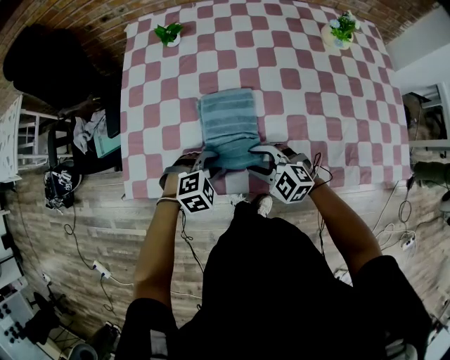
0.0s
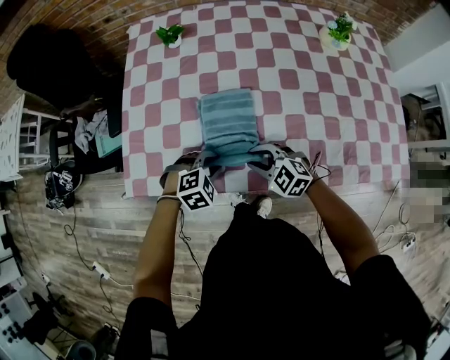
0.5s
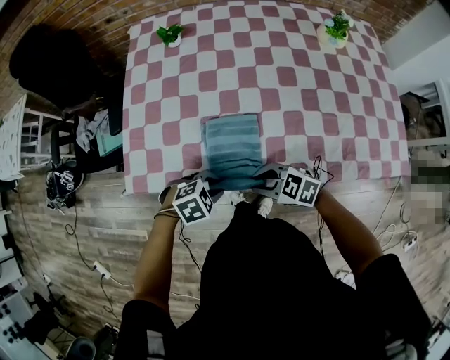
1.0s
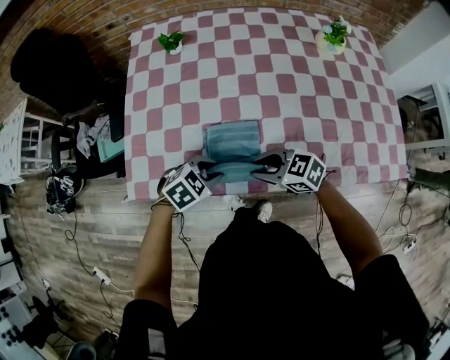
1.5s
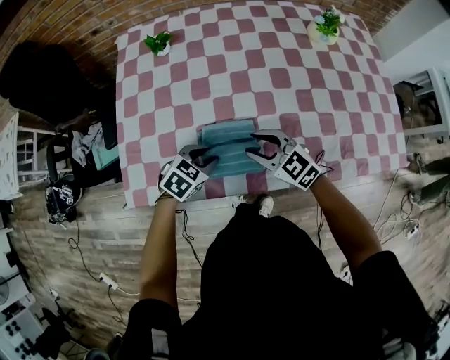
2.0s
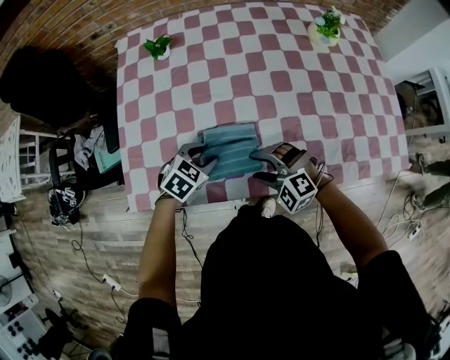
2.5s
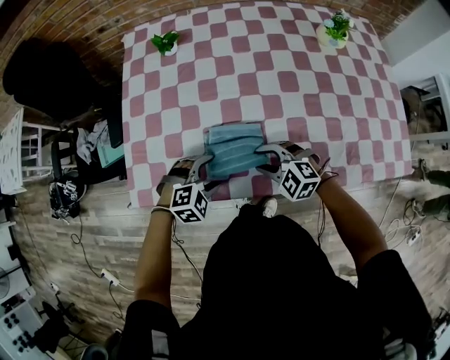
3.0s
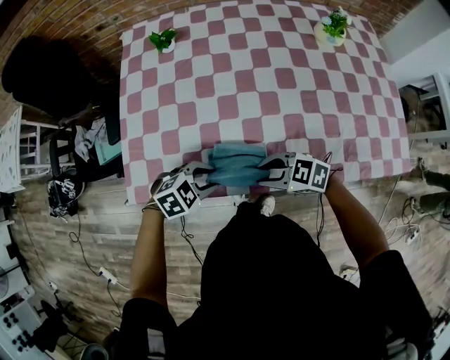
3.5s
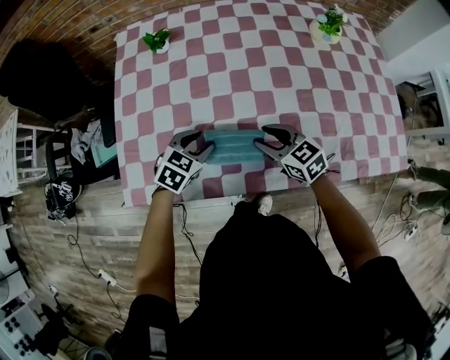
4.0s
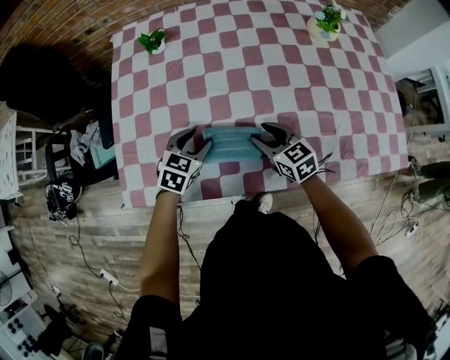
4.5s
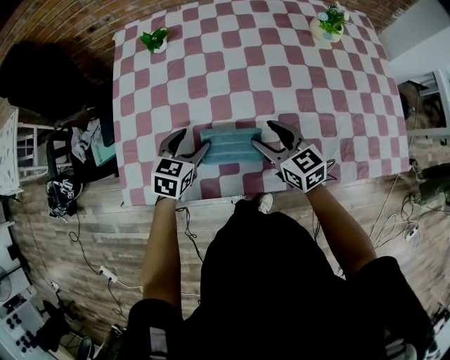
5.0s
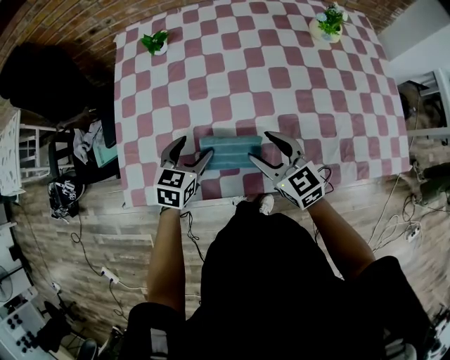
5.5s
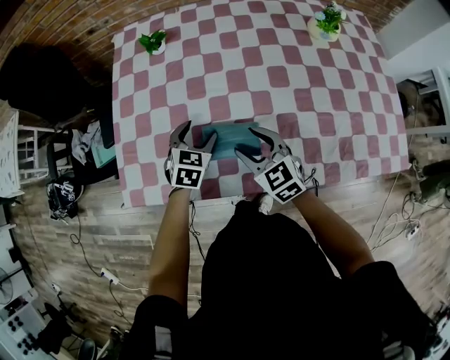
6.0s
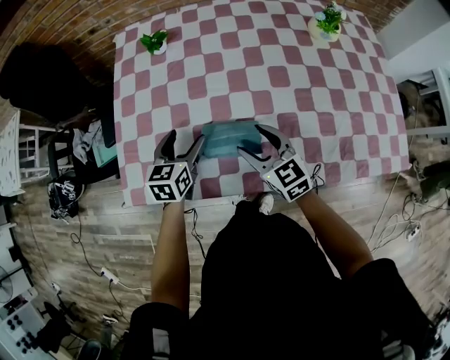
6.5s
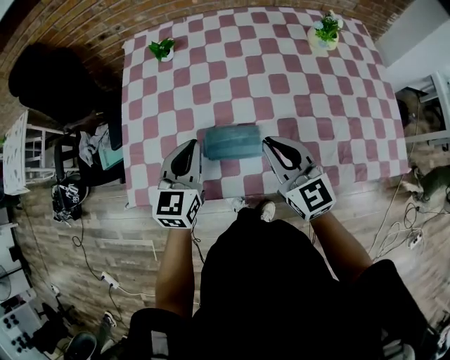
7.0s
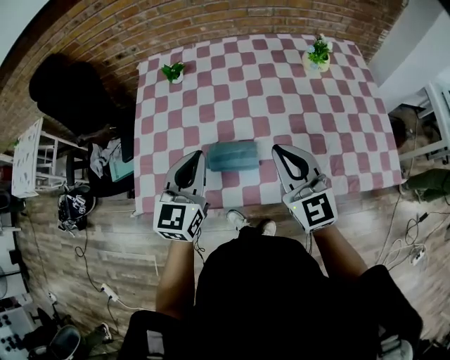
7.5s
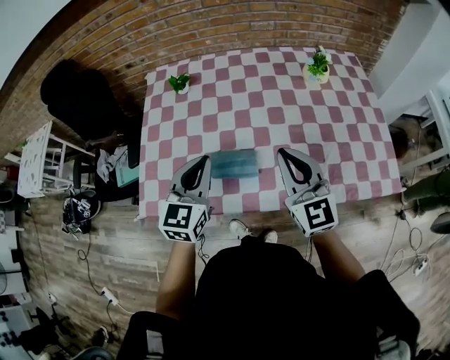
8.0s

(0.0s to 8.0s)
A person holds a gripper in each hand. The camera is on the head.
0.0s - 2.0s: The right gripper travels upward by approximately 5 cm, and swivels about 20 degrees. Meanwhile the left gripper swivels some 30 degrees.
4.0s - 6.0s: The left gripper swivels roughly 20 degrees.
6.0s - 8.0s: The right gripper moves upward and to the right, some 25 cm, swivels about 30 degrees, and closes. Meanwhile the left gripper shifts some 25 cm upward and backward, tilts its fingers roughly 30 degrees upward, and closes up.

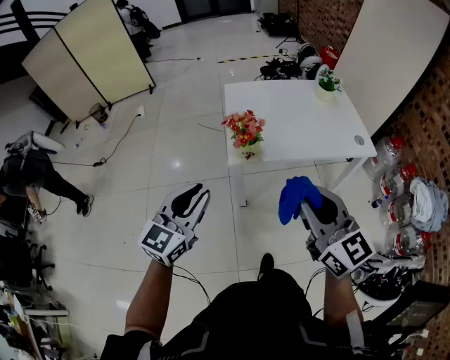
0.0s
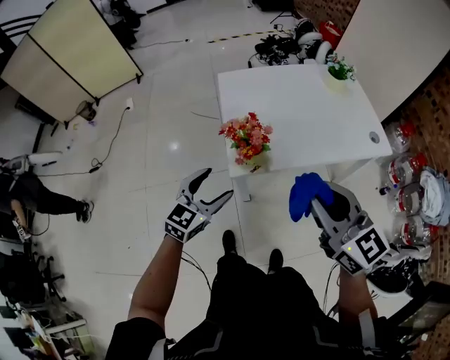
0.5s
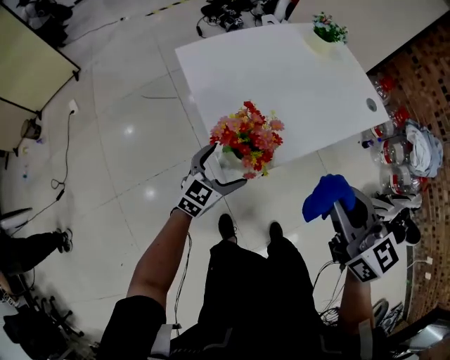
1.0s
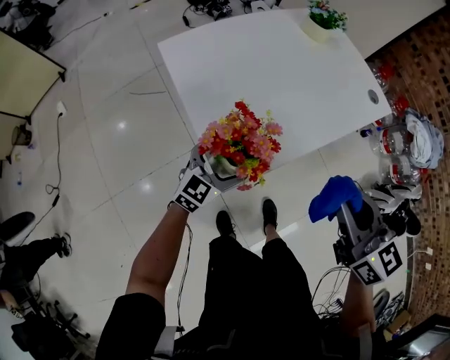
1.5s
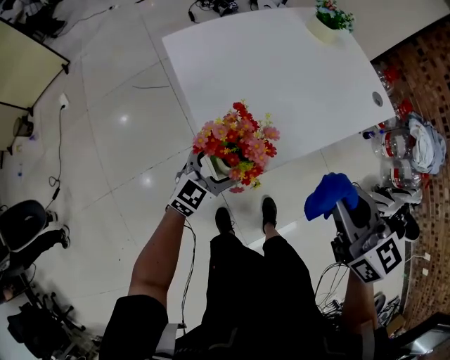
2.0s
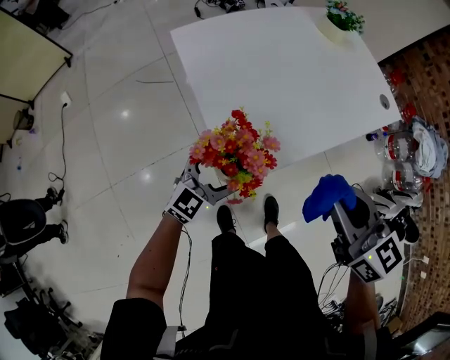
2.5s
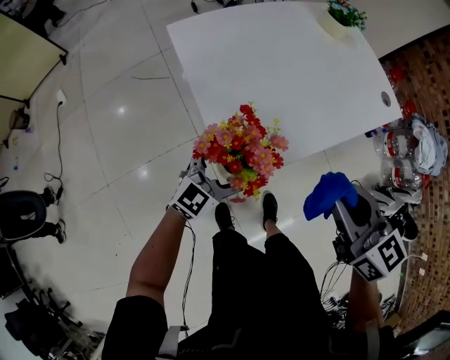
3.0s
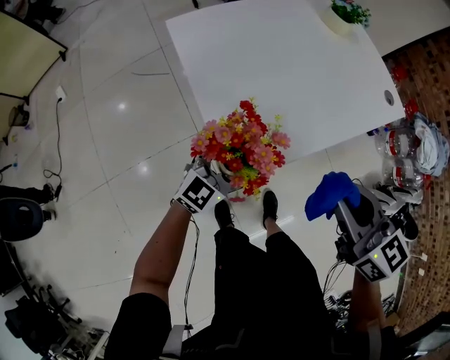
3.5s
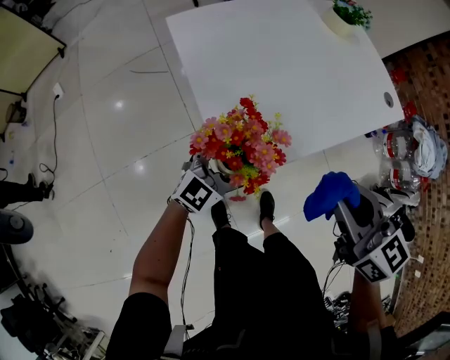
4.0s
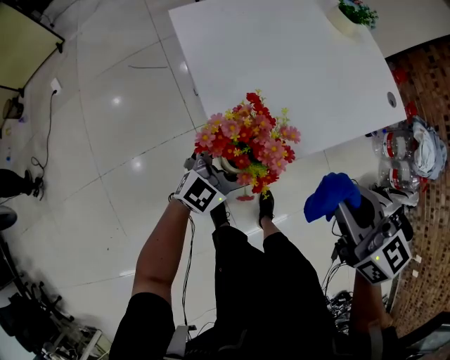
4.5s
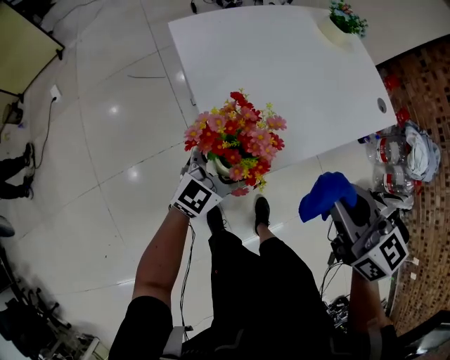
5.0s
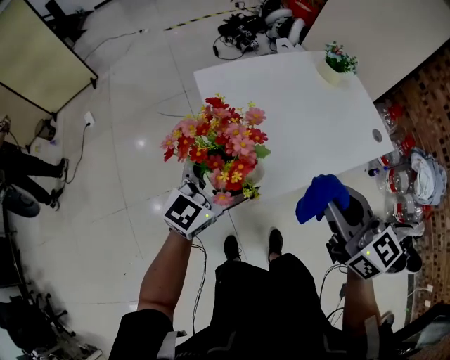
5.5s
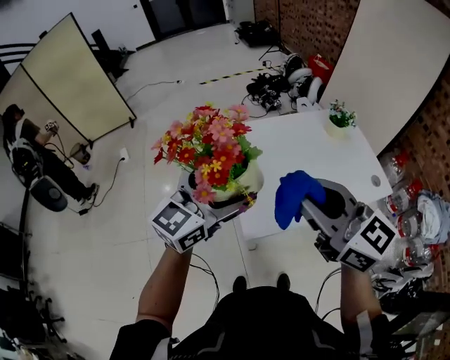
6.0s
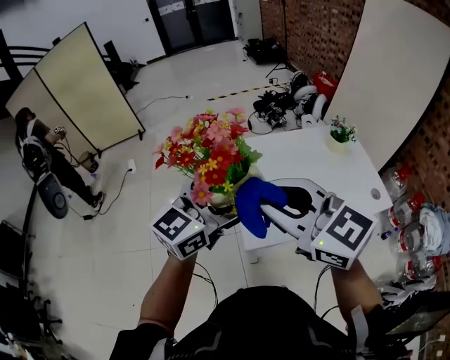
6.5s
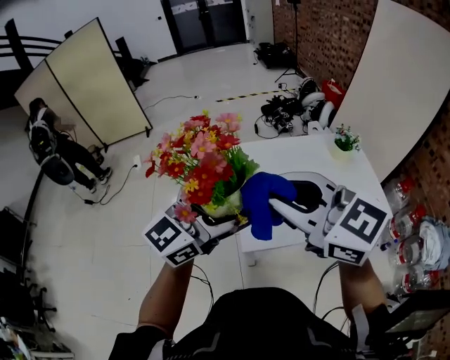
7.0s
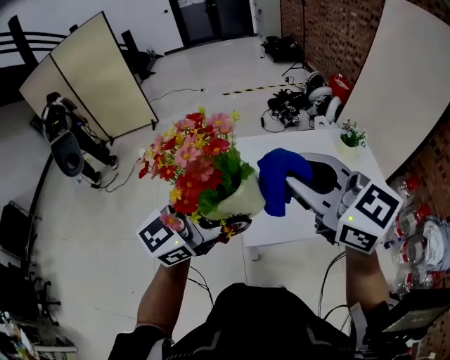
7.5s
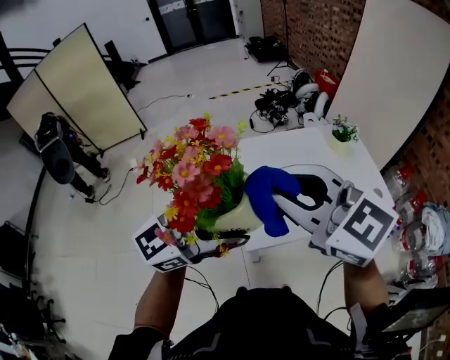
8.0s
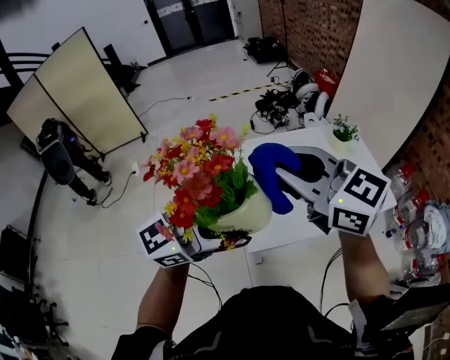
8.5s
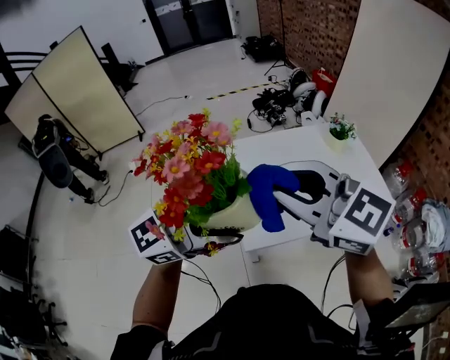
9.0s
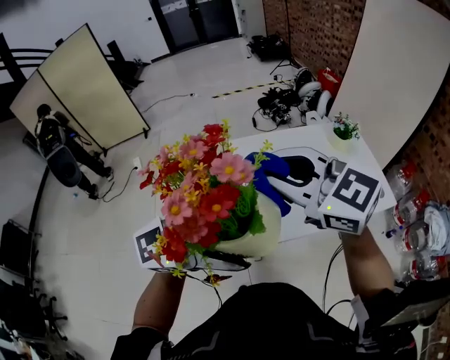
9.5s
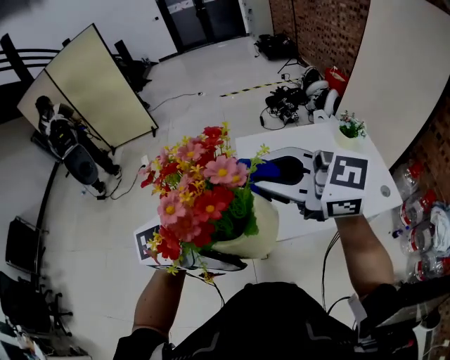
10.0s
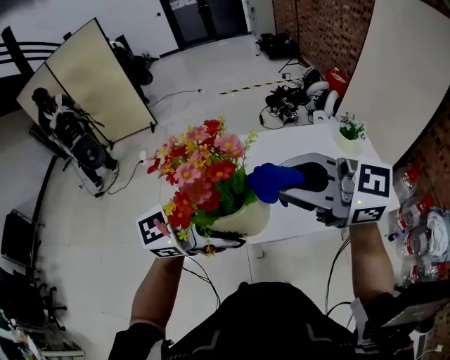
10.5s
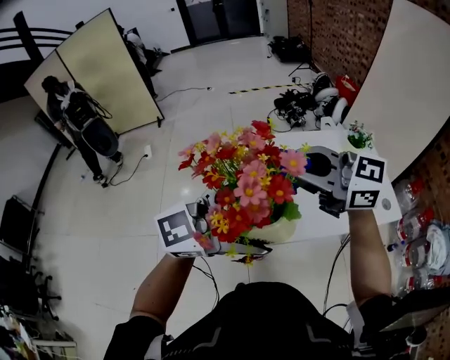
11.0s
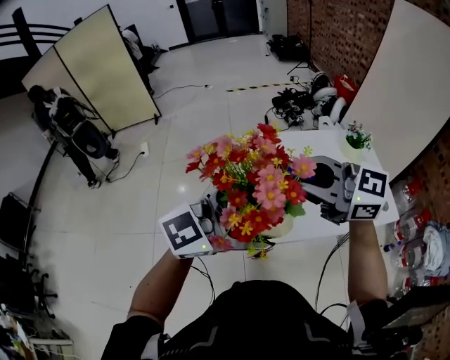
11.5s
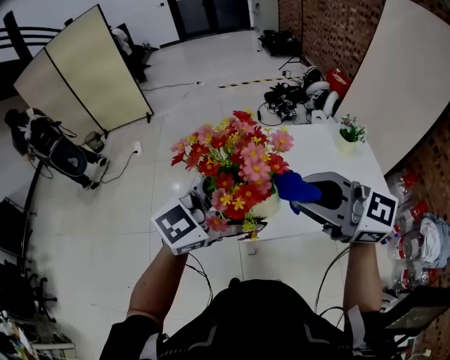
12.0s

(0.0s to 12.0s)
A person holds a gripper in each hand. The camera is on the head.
0.0s - 2.0s: The left gripper ends up roughly 50 cm from where it was, swivels approximately 40 degrees, and opens up; the right gripper shifts by approximately 35 cm, and swivels roughly 30 degrees.
2.0s - 4.0s: The grippers make only small movements.
4.0s - 6.0s: Both grippers move upward, some 35 cm. The left gripper swivels some 20 degrees. The right gripper turns by about 30 degrees.
6.0s - 8.0s: The right gripper goes some 10 cm upward and to the left; the left gripper is displaced backward and upward by roughly 10 cm.
8.0s - 10.0s: The left gripper moves approximately 5 cm. Meanwhile the right gripper changes its angle by about 20 degrees.
10.0s - 12.0s: The left gripper changes place by about 10 cm, and turns by roughly 20 degrees; the right gripper moves roughly 10 cm.

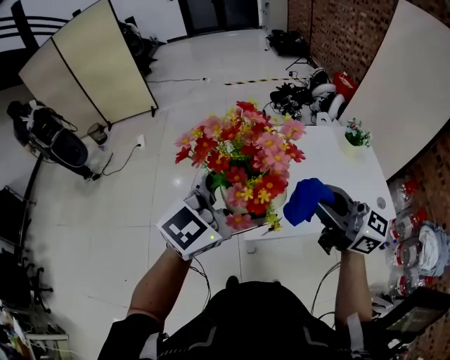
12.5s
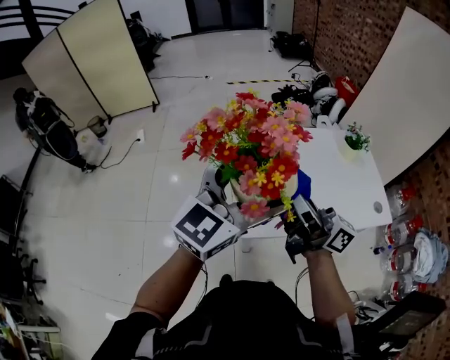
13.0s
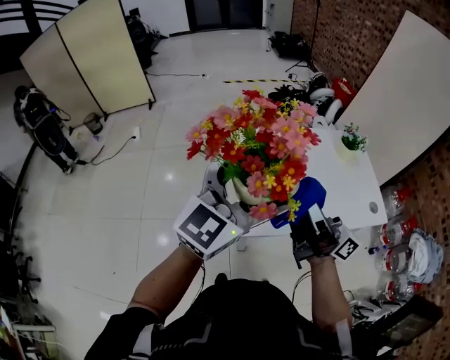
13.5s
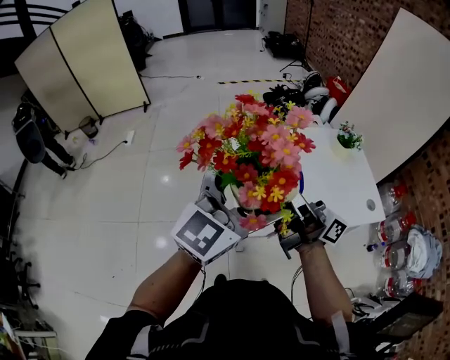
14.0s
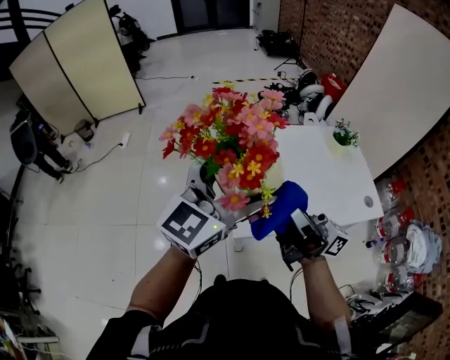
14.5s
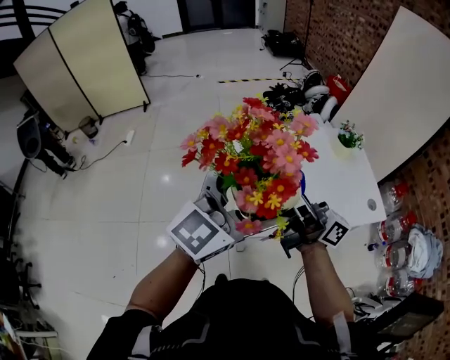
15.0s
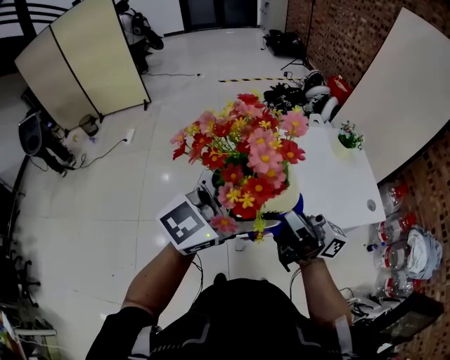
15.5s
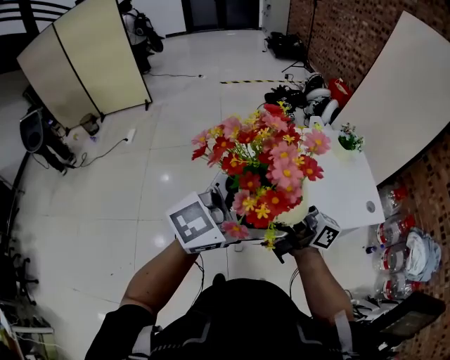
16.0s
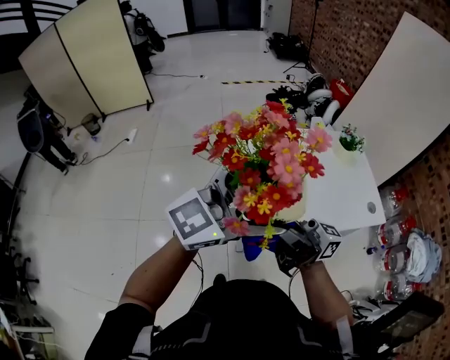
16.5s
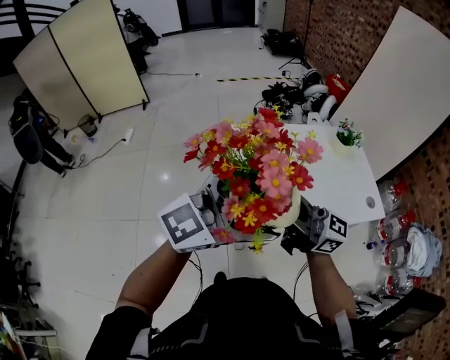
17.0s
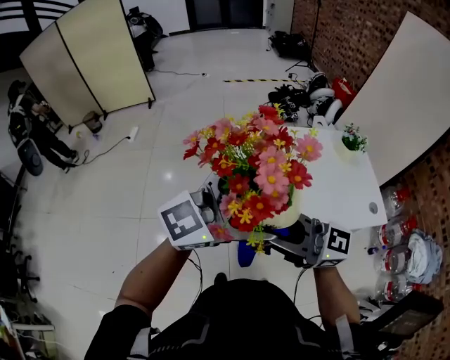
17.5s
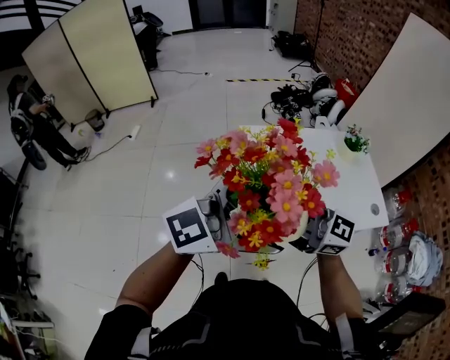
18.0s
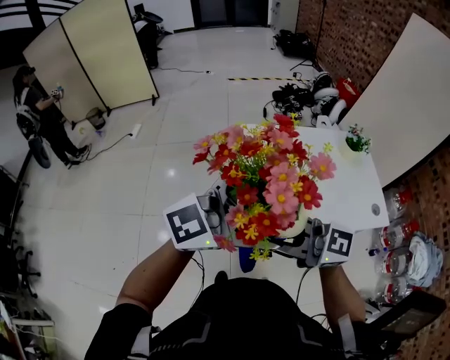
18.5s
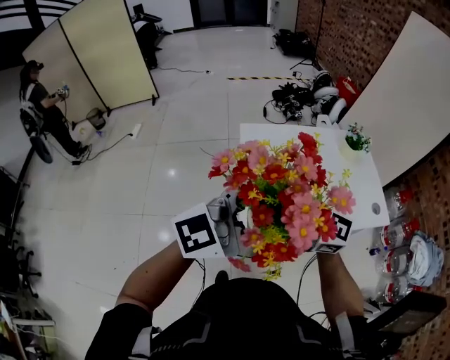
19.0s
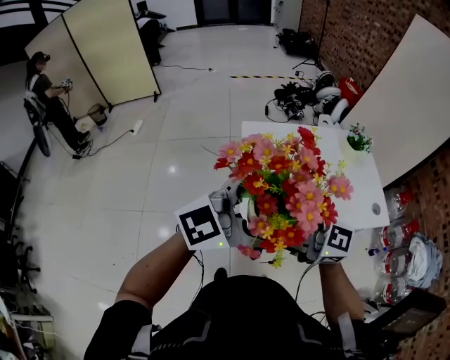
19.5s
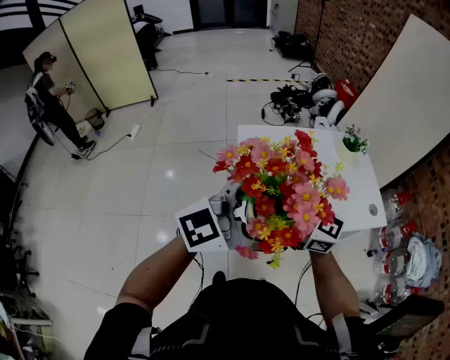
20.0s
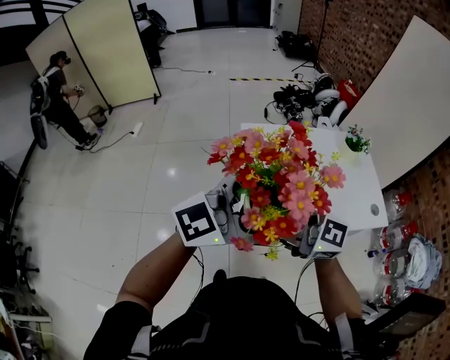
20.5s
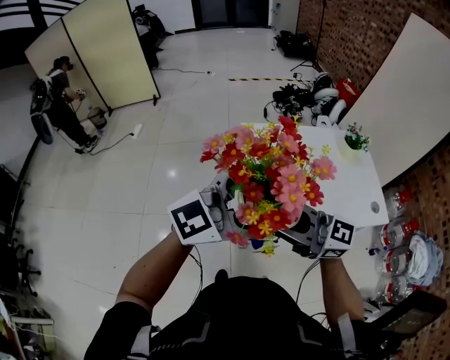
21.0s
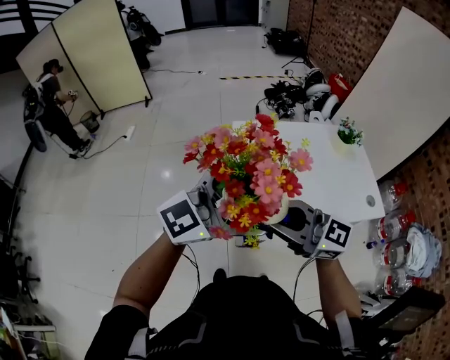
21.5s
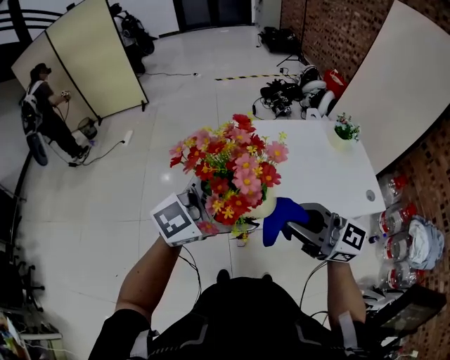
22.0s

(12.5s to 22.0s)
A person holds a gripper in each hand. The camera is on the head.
12.5s - 14.5s: The right gripper ends up some 5 cm from where it was, and changes its angle by approximately 40 degrees.
14.5s - 16.5s: The right gripper ends up some 5 cm from where it was. The left gripper ends up approximately 5 cm from where it was, and turns by roughly 20 degrees.
16.5s - 18.0s: The right gripper moves roughly 5 cm, and changes its angle by some 40 degrees.
20.0s - 22.0s: The right gripper shifts by about 15 cm.
